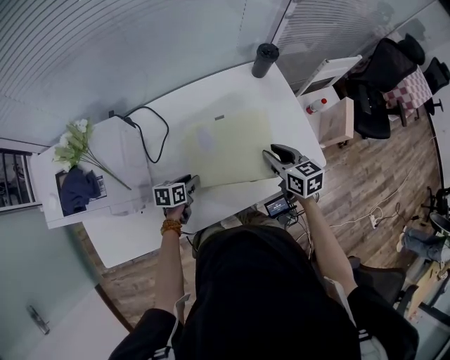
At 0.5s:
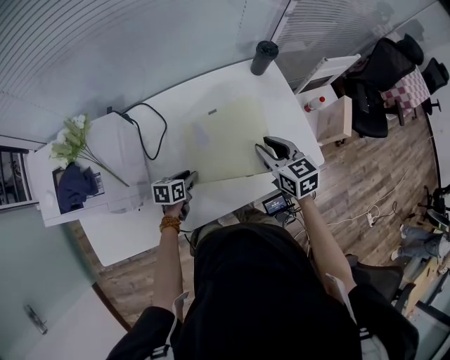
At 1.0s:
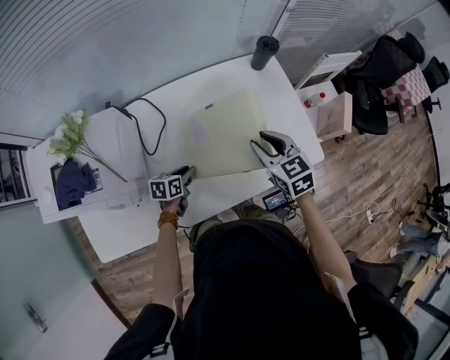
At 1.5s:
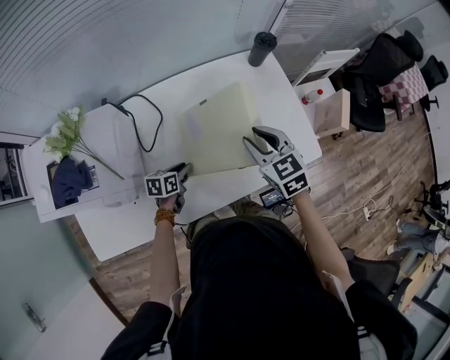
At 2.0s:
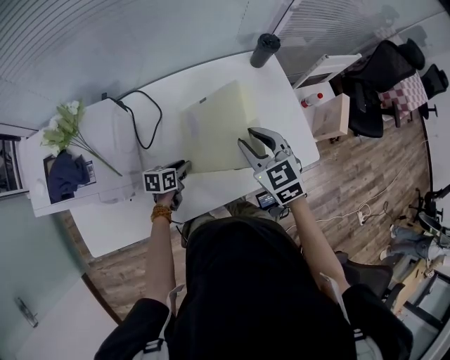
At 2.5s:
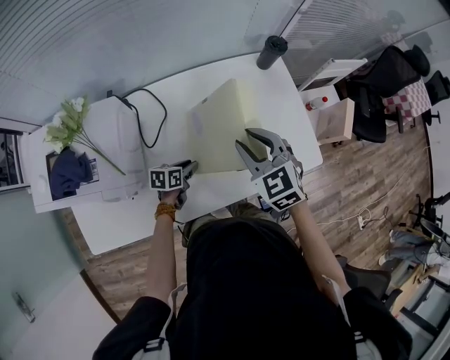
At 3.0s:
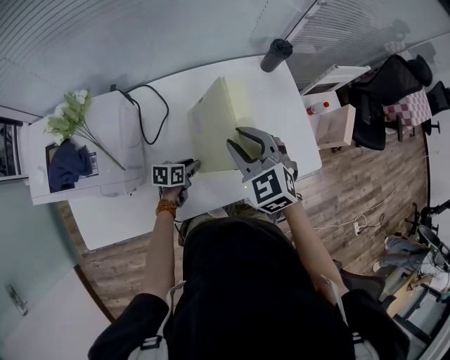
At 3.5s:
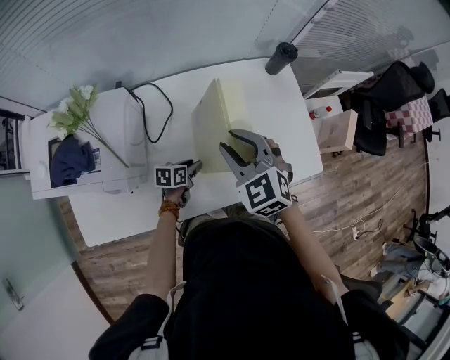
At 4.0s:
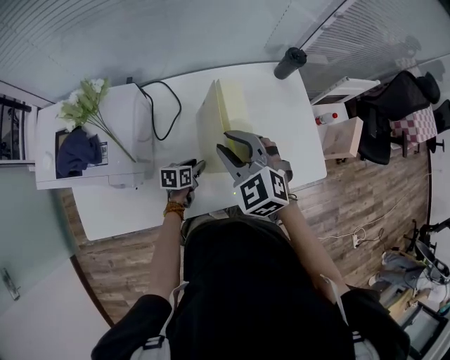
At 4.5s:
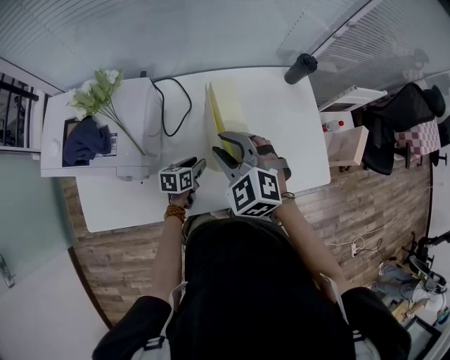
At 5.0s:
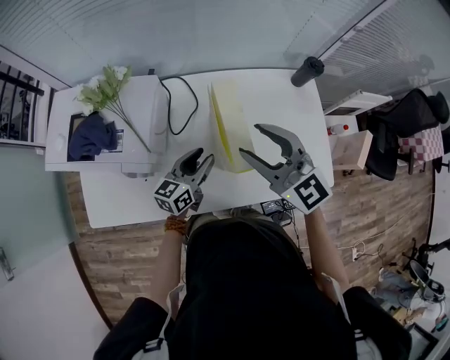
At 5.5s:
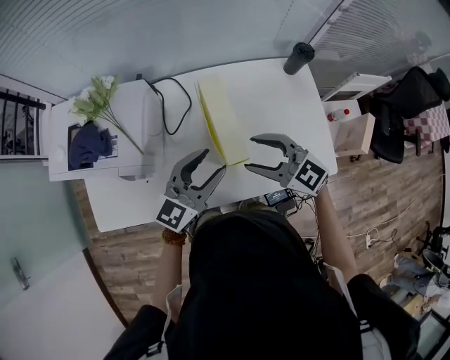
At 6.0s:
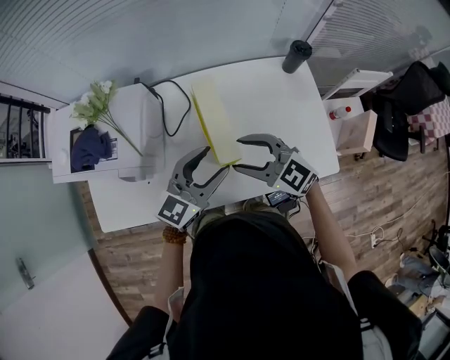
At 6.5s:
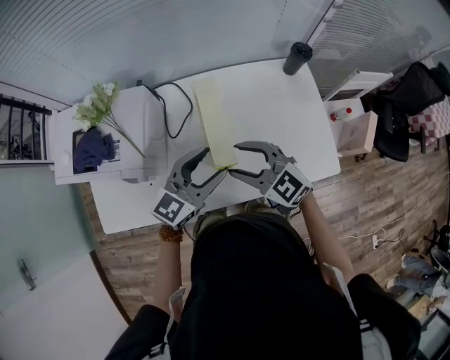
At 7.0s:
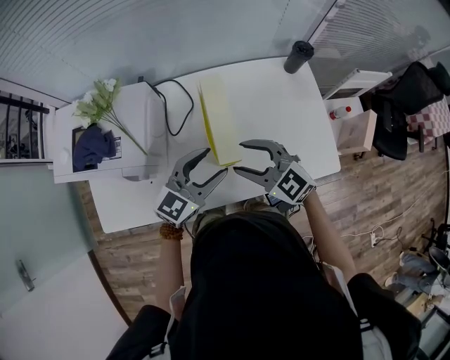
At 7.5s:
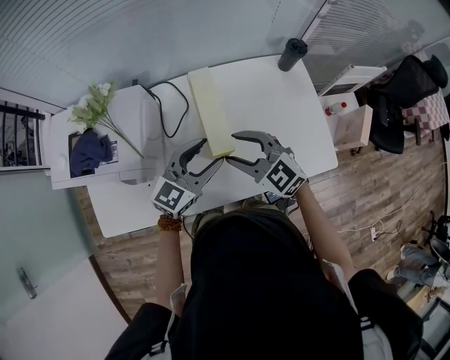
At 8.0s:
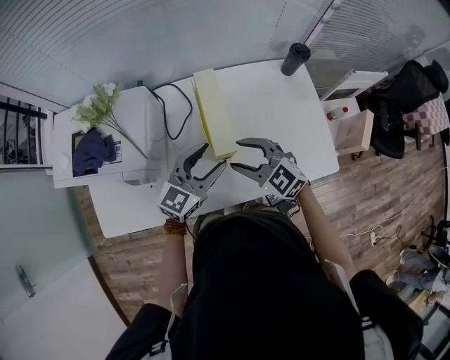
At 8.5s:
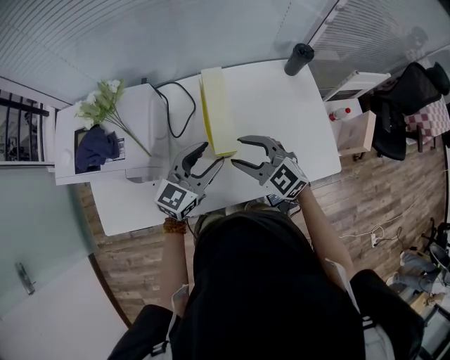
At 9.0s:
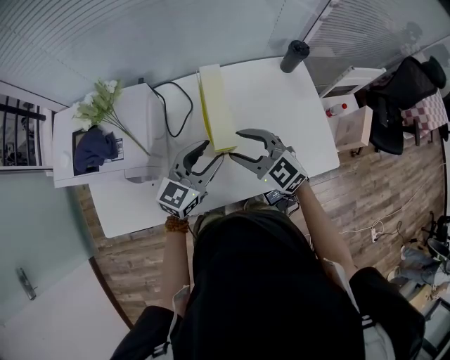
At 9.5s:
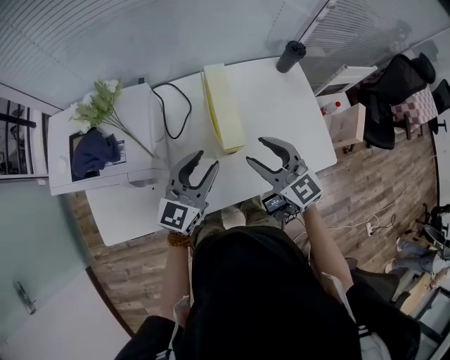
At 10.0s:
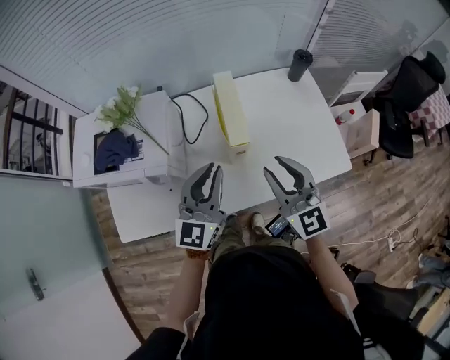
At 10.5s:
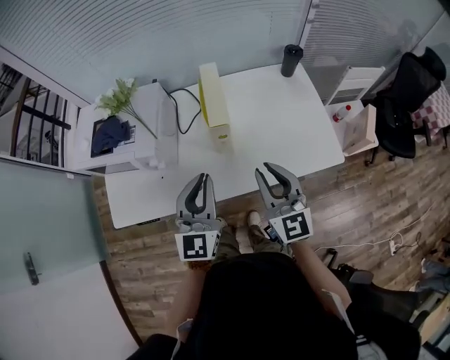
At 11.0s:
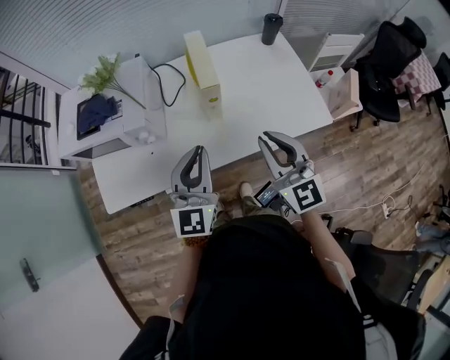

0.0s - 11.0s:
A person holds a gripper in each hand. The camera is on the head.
0.0s - 2.0s: The right gripper heads to the left and upward, covering approximately 10 cm, and rotates approximately 30 degrees.
2.0s - 3.5s: The right gripper shifts some 10 cm to the left.
3.5s - 5.5s: The right gripper reaches roughly 10 cm upward, then returns, changes its angle by some 40 degrees, and opens its fingers. The left gripper heads upward, covering about 30 cm, and tilts its fingers roughly 40 degrees upward.
5.5s - 7.5s: The grippers stay close to where they were, moving slightly.
7.5s - 9.0s: The grippers move only a little.
9.0s - 11.0s: The two grippers go approximately 20 cm backward and upward. The right gripper swivels roughly 40 degrees, and closes up; the left gripper rotates about 30 degrees, and closes up.

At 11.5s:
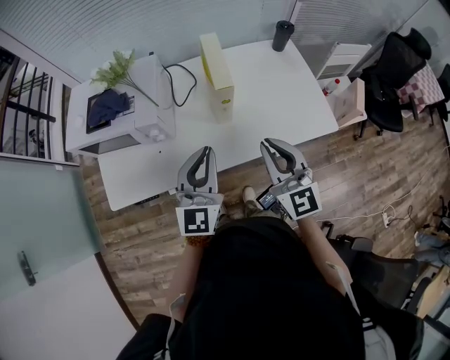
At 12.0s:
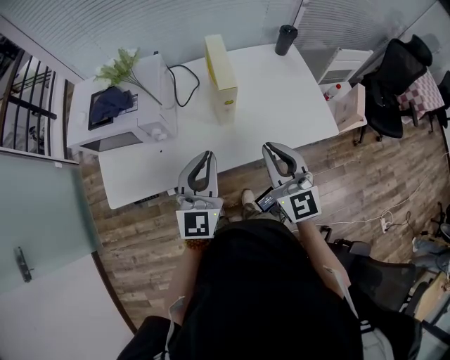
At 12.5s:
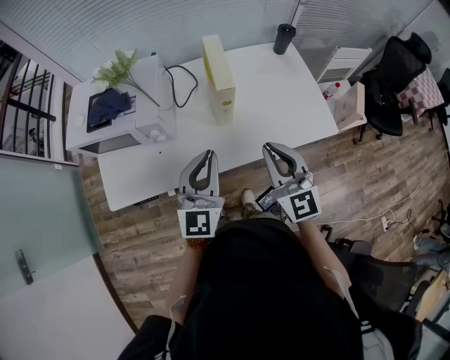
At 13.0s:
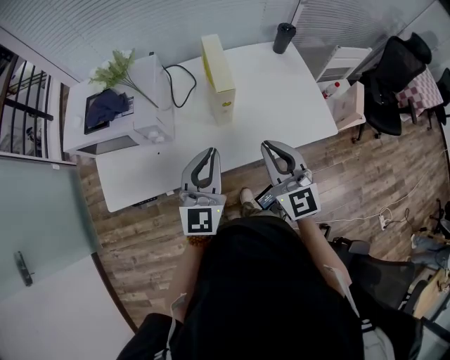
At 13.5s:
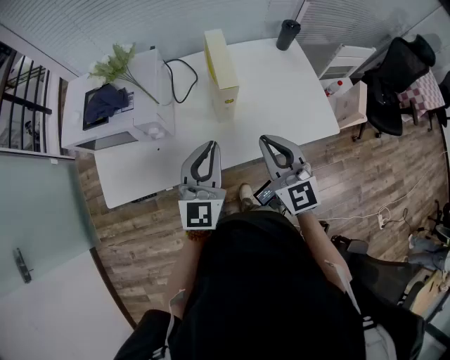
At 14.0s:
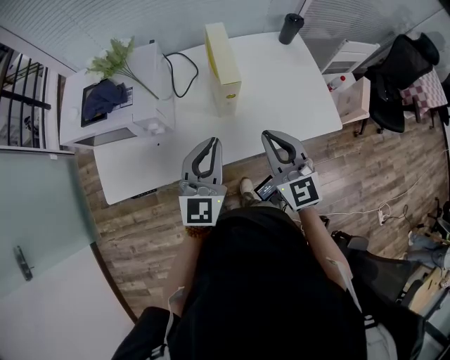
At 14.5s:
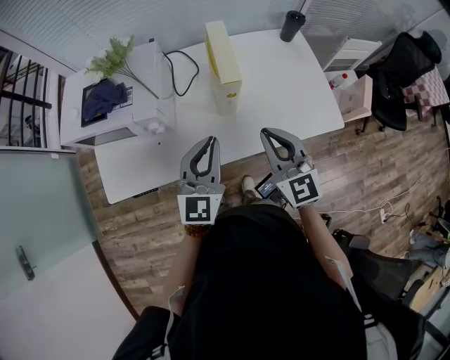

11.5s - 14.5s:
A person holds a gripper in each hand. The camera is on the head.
11.5s - 14.5s: The grippers stay close to where they were, moving slightly.

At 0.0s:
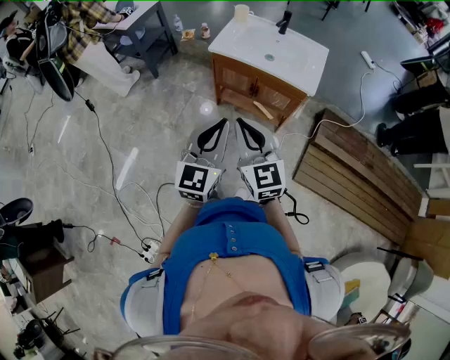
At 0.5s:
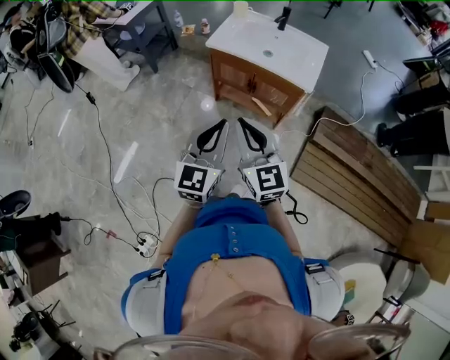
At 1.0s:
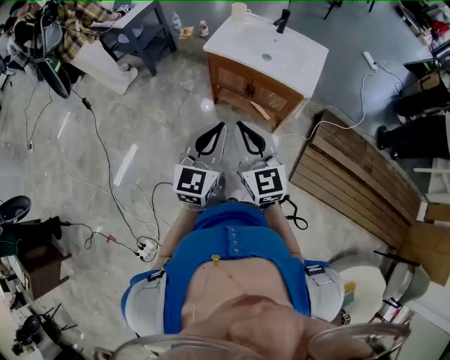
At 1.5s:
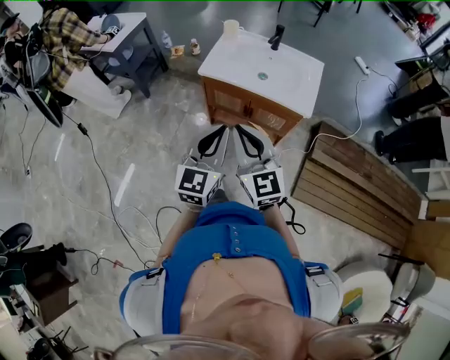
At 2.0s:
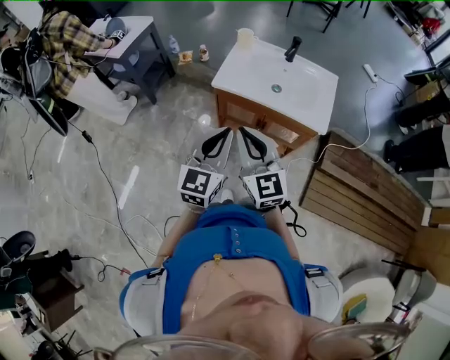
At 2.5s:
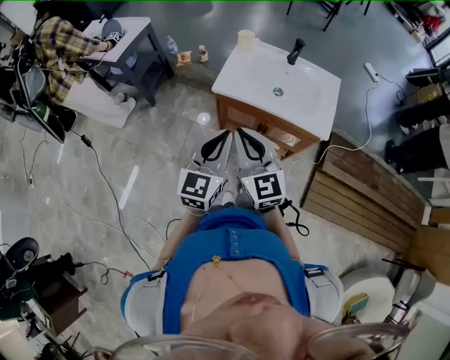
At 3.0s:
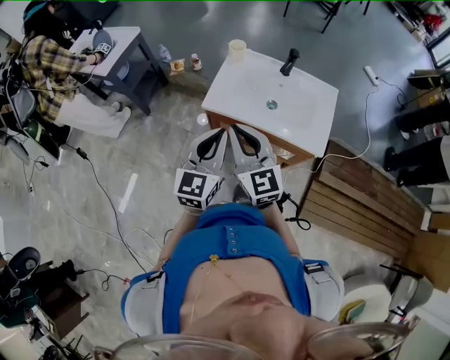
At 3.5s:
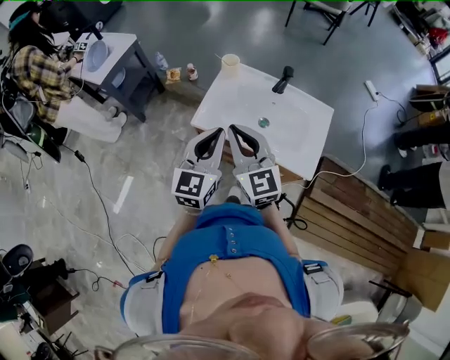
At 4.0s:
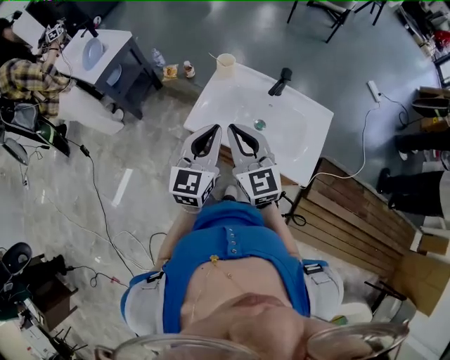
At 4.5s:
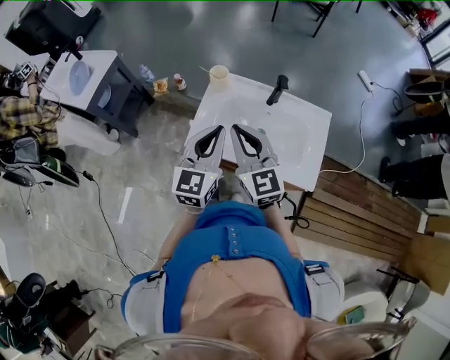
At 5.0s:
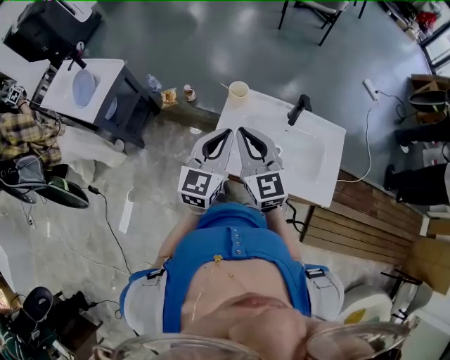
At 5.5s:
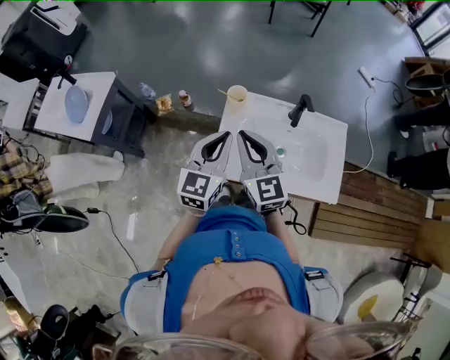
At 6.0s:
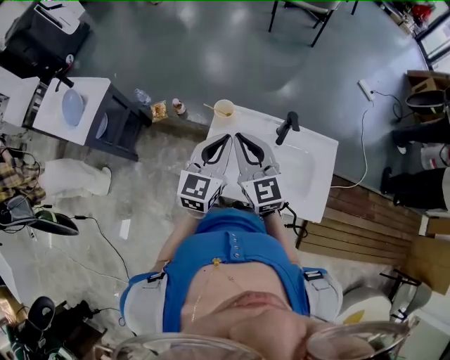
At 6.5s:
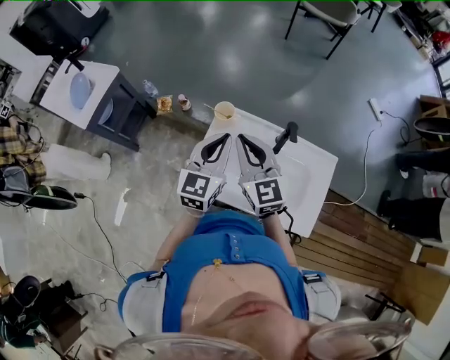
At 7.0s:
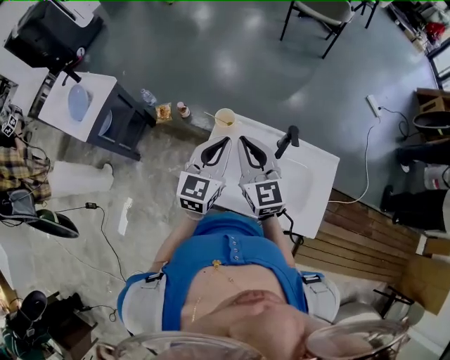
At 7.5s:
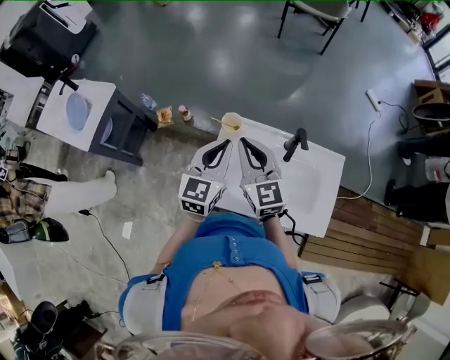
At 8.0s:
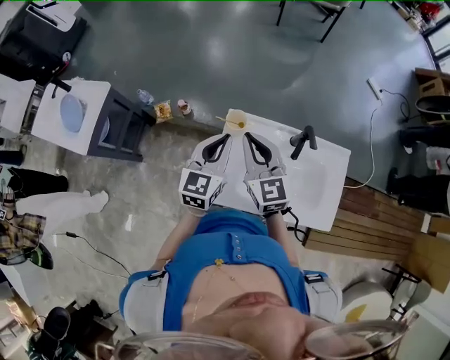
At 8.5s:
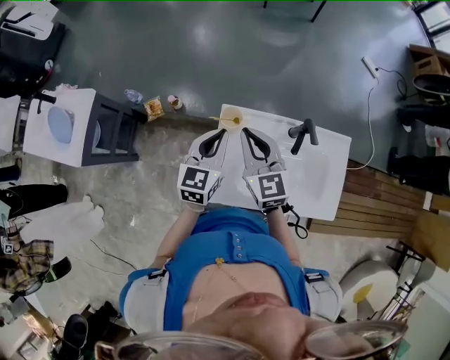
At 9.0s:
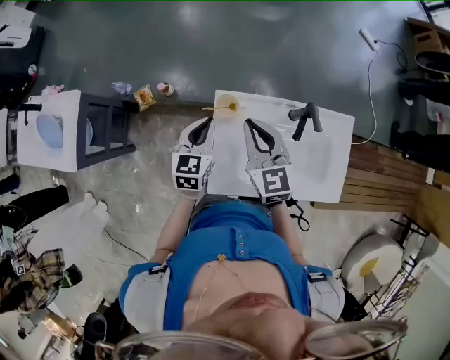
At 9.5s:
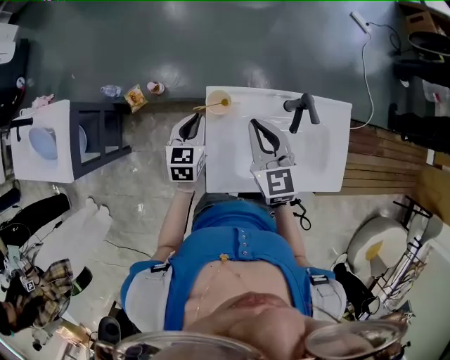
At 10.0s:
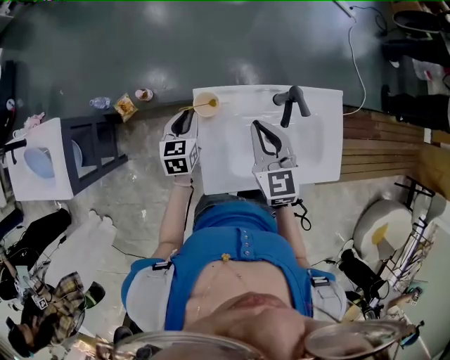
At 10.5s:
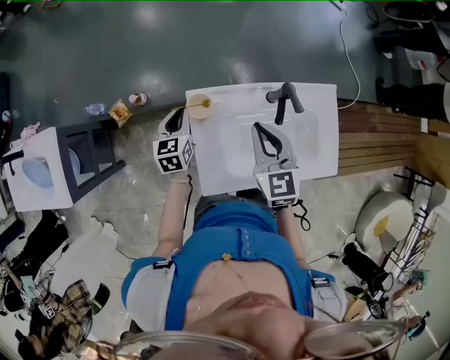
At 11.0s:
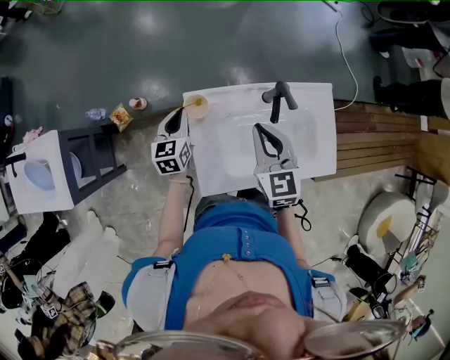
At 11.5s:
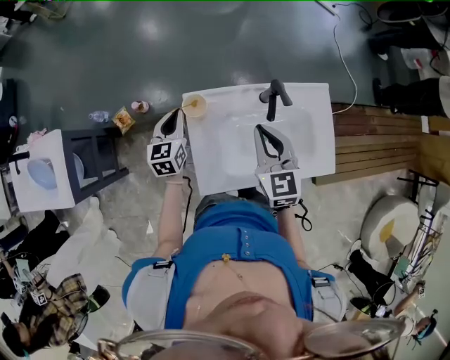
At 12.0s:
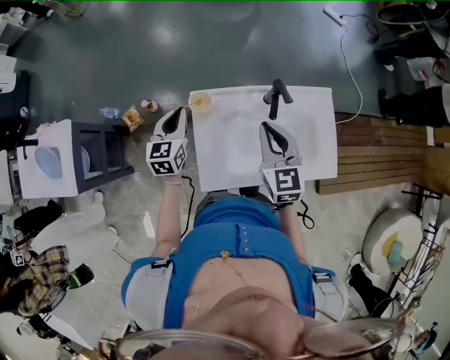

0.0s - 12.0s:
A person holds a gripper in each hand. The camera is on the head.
0.0s - 2.0s: Both grippers move forward, approximately 20 cm.
2.0s - 4.0s: The two grippers go approximately 25 cm forward.
4.0s - 6.0s: The grippers both shift forward by approximately 20 cm.
6.0s - 8.0s: The right gripper heads forward, covering roughly 10 cm, while the left gripper moves forward and to the left, approximately 10 cm.
8.0s - 10.0s: The left gripper travels downward and forward by approximately 20 cm, and turns by some 20 degrees; the right gripper heads to the right and downward, covering roughly 10 cm, and changes its angle by about 20 degrees.
10.0s - 12.0s: The right gripper travels to the right by roughly 5 cm. The left gripper shifts approximately 10 cm upward.

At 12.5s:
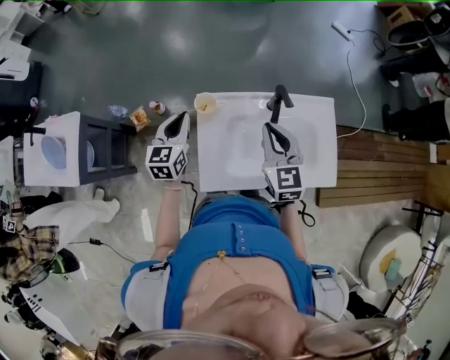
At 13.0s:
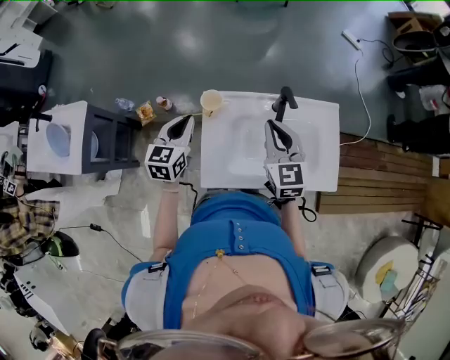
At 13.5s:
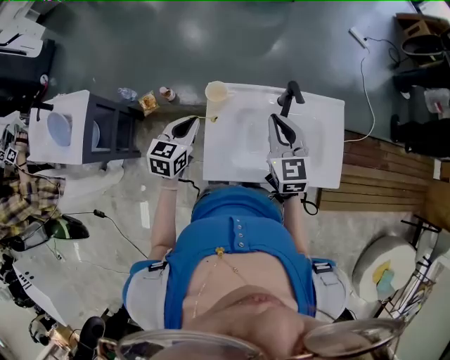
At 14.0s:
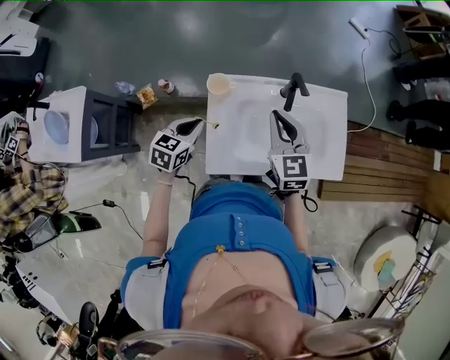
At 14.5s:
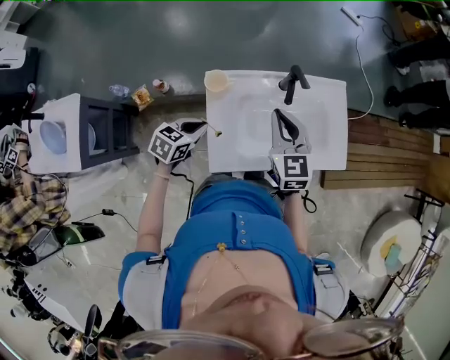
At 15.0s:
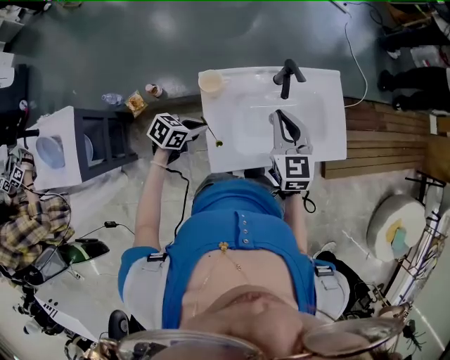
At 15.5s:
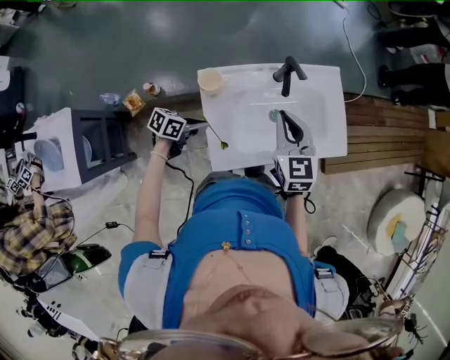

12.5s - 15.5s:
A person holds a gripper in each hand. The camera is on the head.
12.5s - 14.0s: The left gripper travels backward and downward by some 10 cm, and swivels some 30 degrees.
14.0s - 15.5s: The left gripper moves downward, approximately 10 cm, and changes its angle by approximately 40 degrees.
